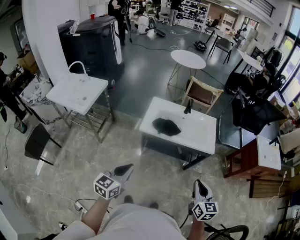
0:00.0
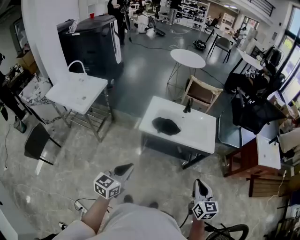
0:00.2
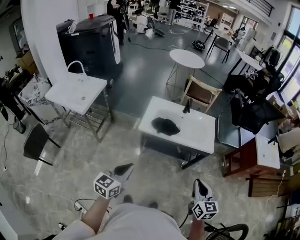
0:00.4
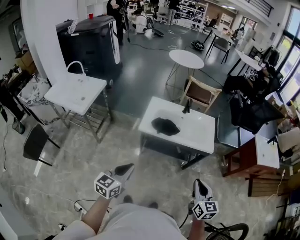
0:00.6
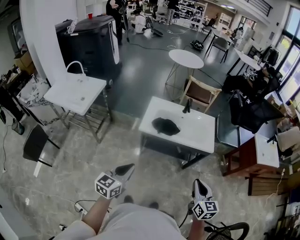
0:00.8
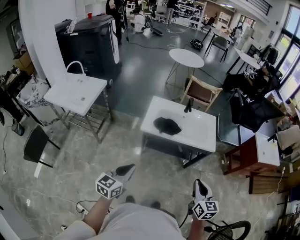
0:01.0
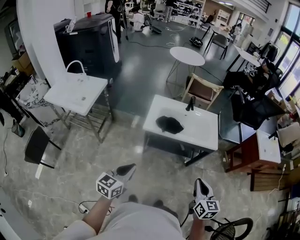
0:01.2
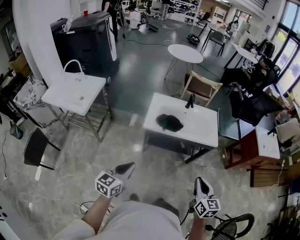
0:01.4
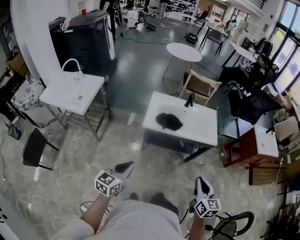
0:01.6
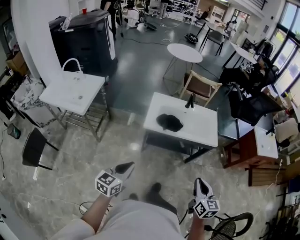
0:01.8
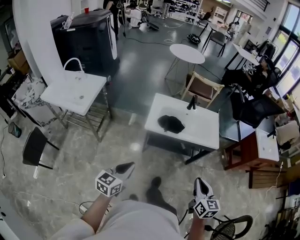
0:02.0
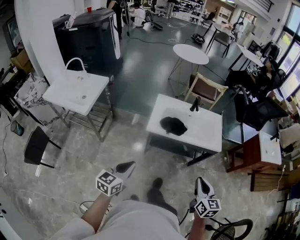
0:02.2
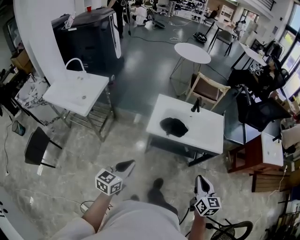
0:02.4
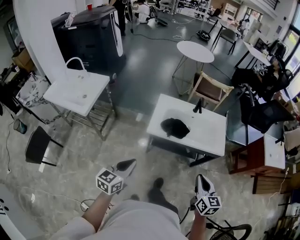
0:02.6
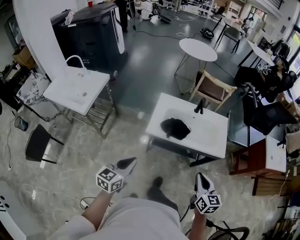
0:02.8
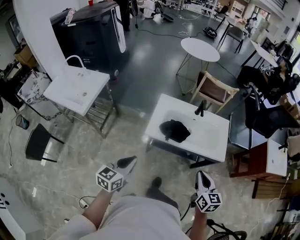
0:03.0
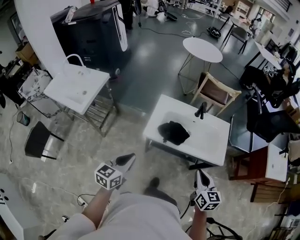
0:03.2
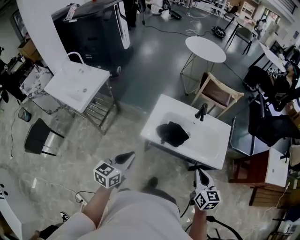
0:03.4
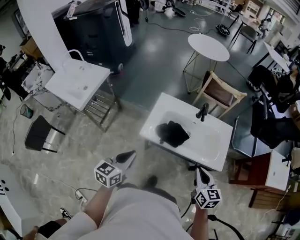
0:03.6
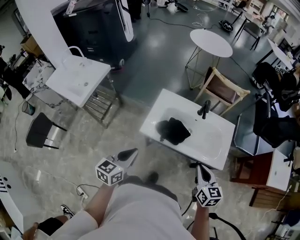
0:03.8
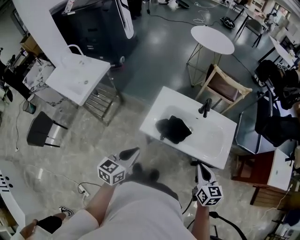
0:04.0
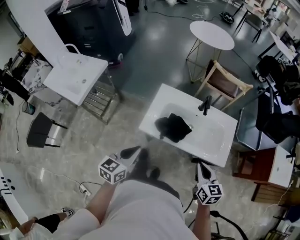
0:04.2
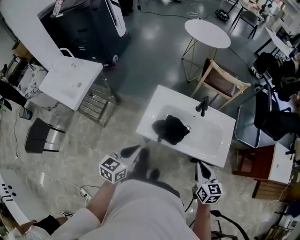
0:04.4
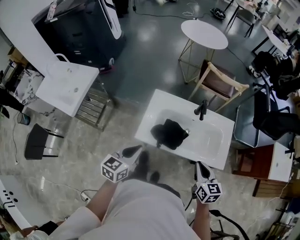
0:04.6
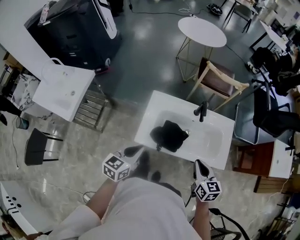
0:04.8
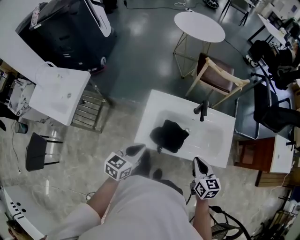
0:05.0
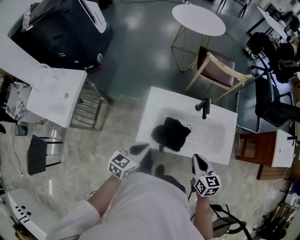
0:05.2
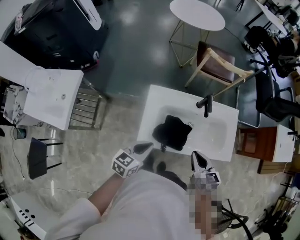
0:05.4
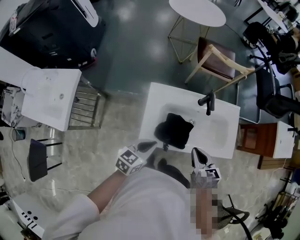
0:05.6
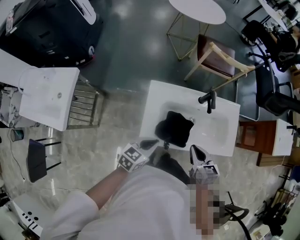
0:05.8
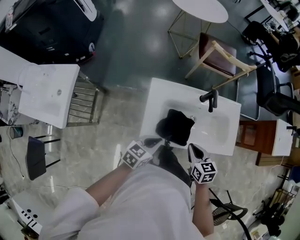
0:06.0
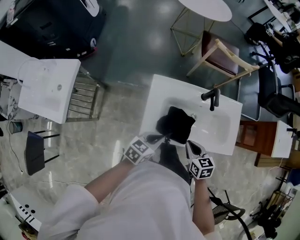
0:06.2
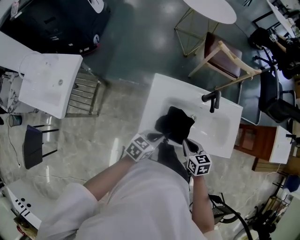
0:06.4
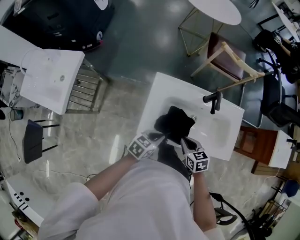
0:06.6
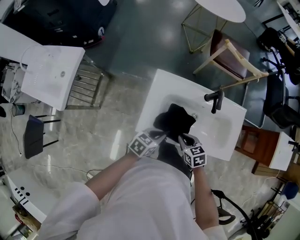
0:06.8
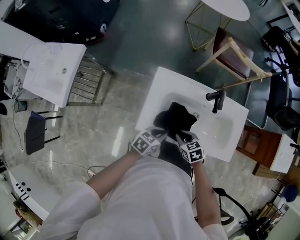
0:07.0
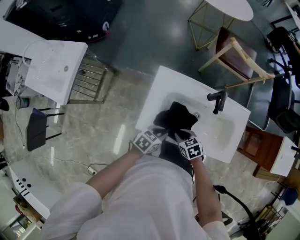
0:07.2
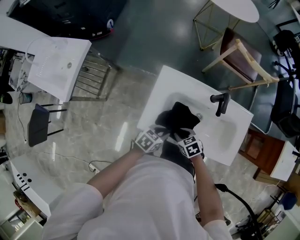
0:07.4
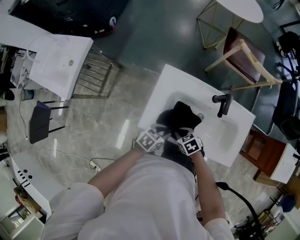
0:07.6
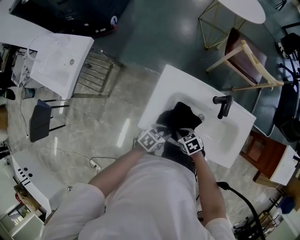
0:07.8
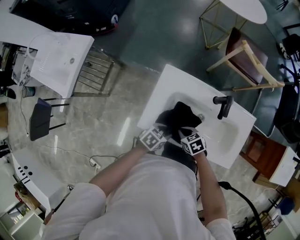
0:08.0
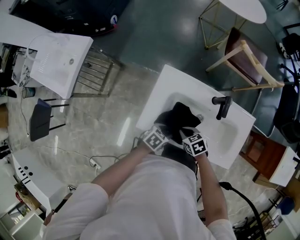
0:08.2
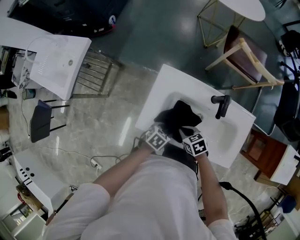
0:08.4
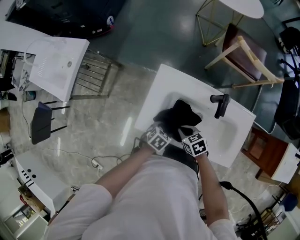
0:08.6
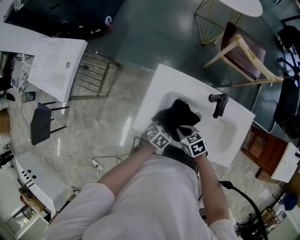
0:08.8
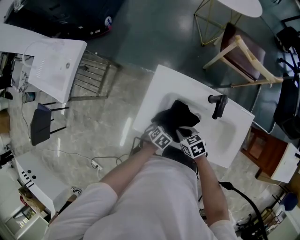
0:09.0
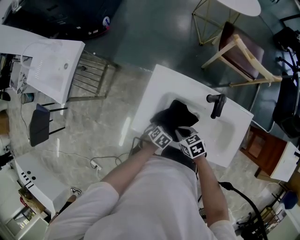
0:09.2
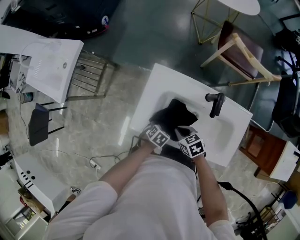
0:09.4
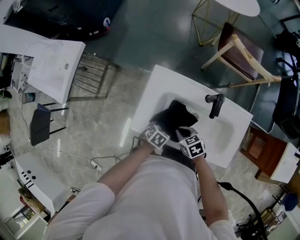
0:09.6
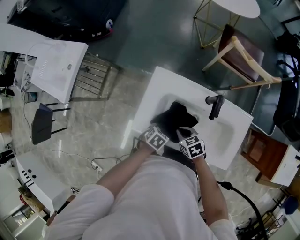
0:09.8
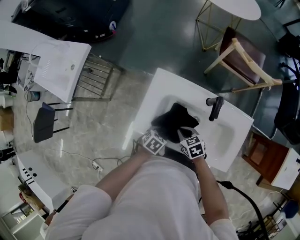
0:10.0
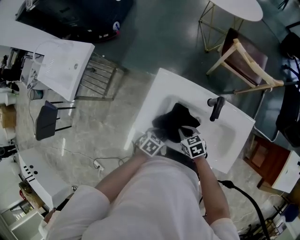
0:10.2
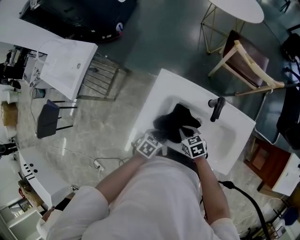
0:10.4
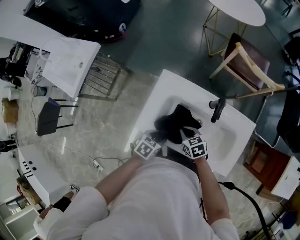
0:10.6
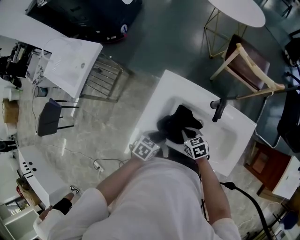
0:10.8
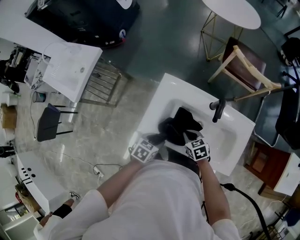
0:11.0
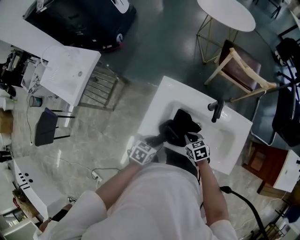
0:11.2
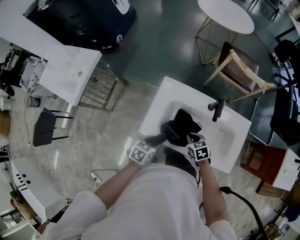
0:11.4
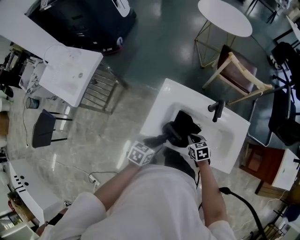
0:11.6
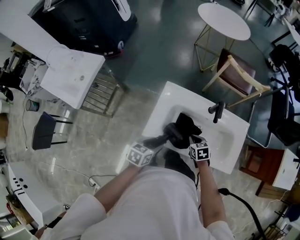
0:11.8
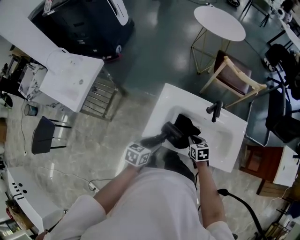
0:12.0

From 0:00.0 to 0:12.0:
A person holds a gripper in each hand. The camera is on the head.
From 0:00.0 to 0:01.6: Both grippers travel together to the left, about 10 cm.
From 0:01.6 to 0:03.0: Both grippers travel together forward, roughly 20 cm.
From 0:03.0 to 0:04.4: The left gripper heads forward and to the right, covering about 20 cm. The right gripper moves forward, some 15 cm.
From 0:04.4 to 0:06.0: The left gripper goes about 20 cm forward and downward, and rotates approximately 30 degrees; the right gripper heads to the left, forward and downward, covering approximately 20 cm.
From 0:06.0 to 0:07.6: The grippers both shift downward by about 15 cm. The right gripper rotates approximately 50 degrees. The left gripper opens up.
From 0:07.6 to 0:09.0: The left gripper travels downward by approximately 10 cm, swivels about 30 degrees, and opens up. Meanwhile the right gripper changes place by approximately 5 cm.
From 0:09.0 to 0:10.4: The left gripper is displaced upward by about 10 cm.
From 0:10.4 to 0:12.0: The left gripper travels upward and to the left by roughly 15 cm, and turns by roughly 20 degrees. Meanwhile the right gripper goes some 5 cm backward, and changes its angle by some 20 degrees.

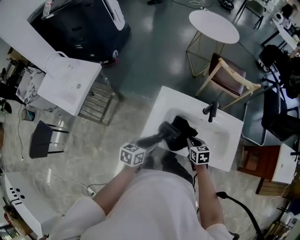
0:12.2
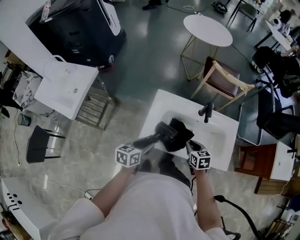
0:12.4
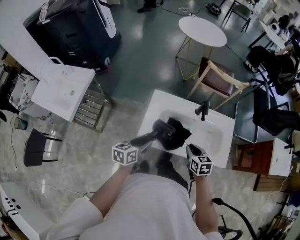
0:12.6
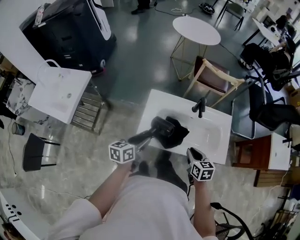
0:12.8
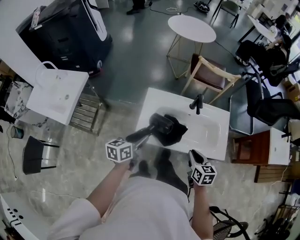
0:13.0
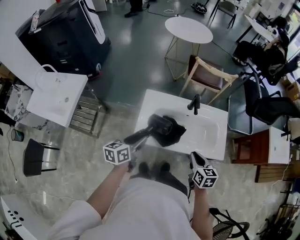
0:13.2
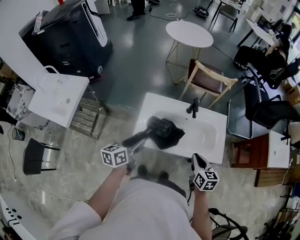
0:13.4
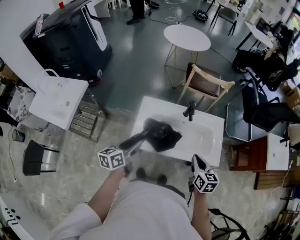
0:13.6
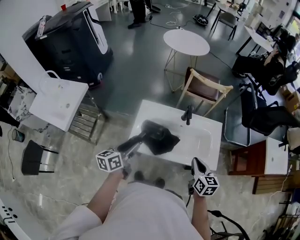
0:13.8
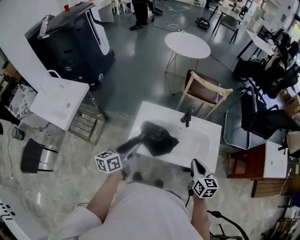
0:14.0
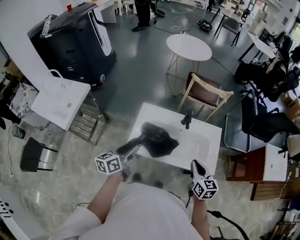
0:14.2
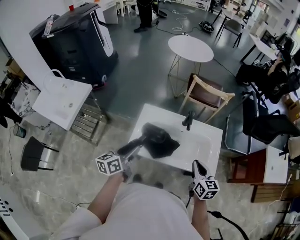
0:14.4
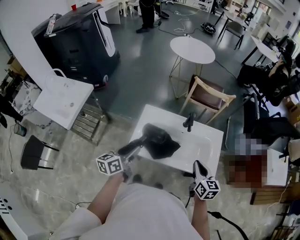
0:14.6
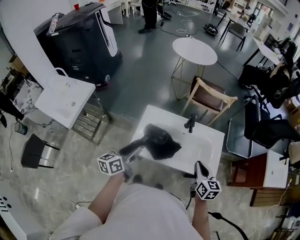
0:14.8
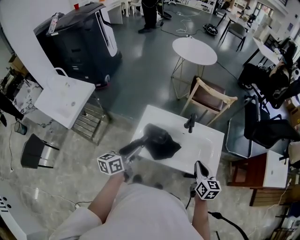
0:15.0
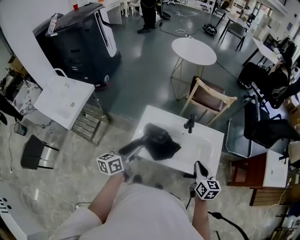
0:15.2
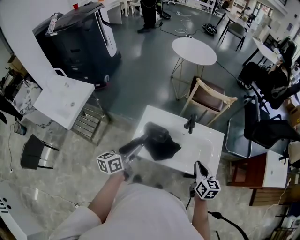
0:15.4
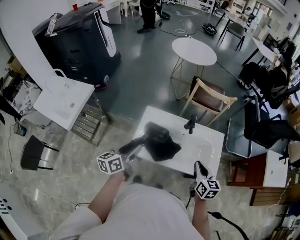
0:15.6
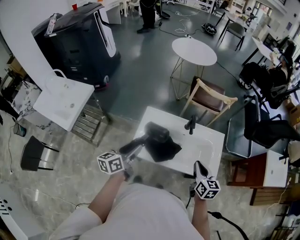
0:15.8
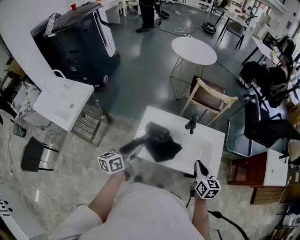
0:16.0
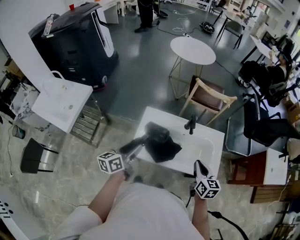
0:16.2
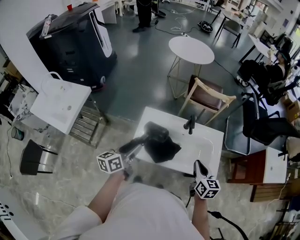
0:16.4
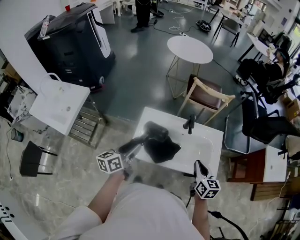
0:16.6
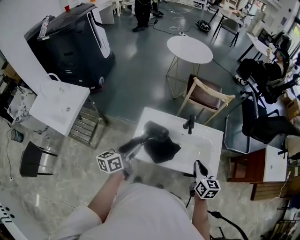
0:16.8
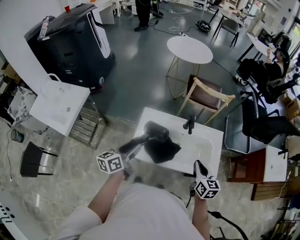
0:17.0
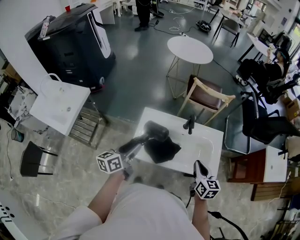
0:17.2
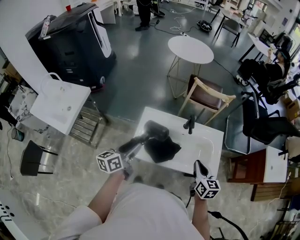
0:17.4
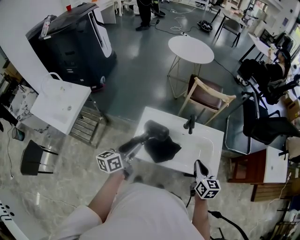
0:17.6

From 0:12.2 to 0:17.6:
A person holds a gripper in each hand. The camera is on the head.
From 0:12.2 to 0:13.6: The left gripper heads upward, covering some 10 cm, while the right gripper shifts roughly 25 cm upward, to the right and backward, and rotates approximately 30 degrees.
From 0:13.6 to 0:16.2: The grippers move only a little.
From 0:16.2 to 0:17.6: The two grippers keep their place.

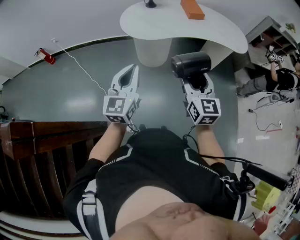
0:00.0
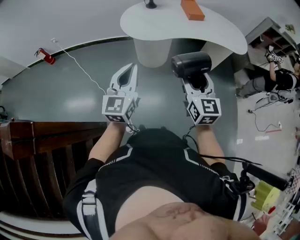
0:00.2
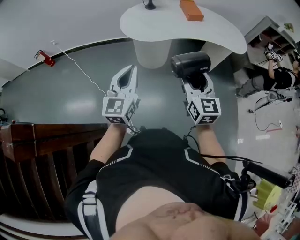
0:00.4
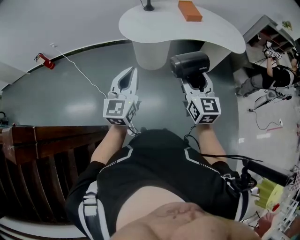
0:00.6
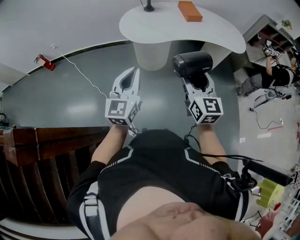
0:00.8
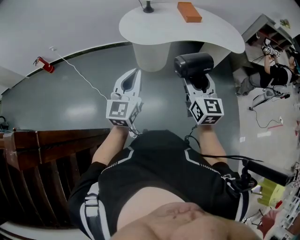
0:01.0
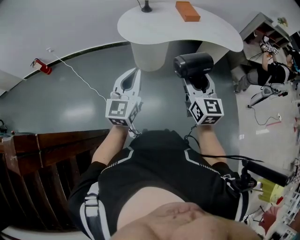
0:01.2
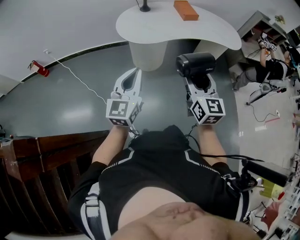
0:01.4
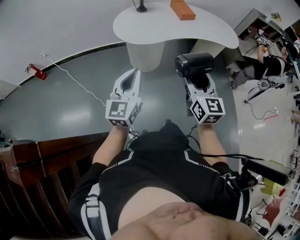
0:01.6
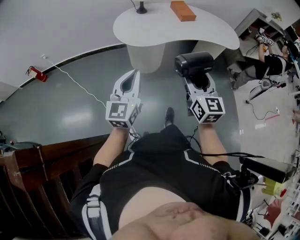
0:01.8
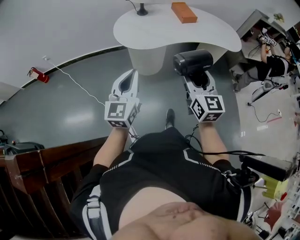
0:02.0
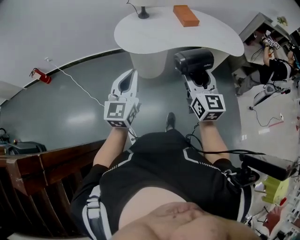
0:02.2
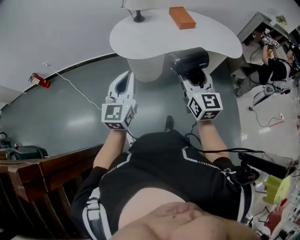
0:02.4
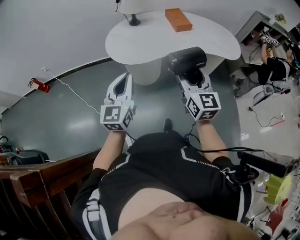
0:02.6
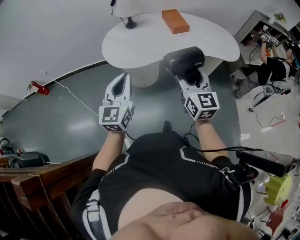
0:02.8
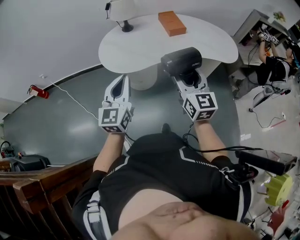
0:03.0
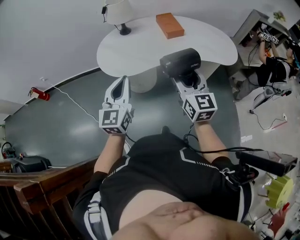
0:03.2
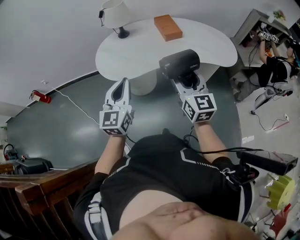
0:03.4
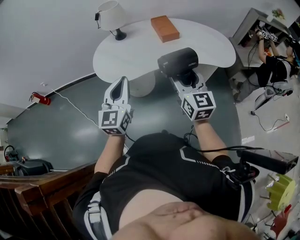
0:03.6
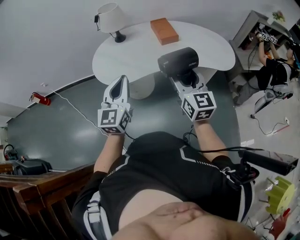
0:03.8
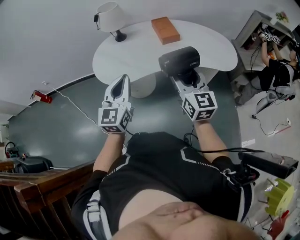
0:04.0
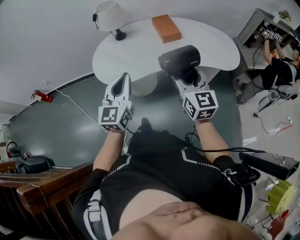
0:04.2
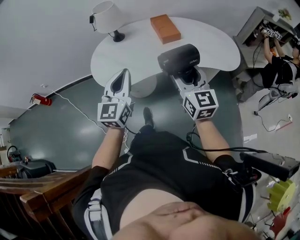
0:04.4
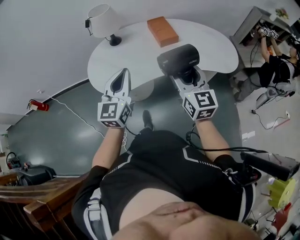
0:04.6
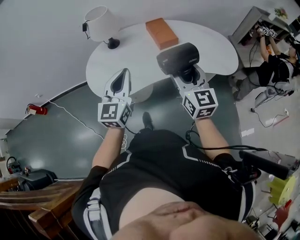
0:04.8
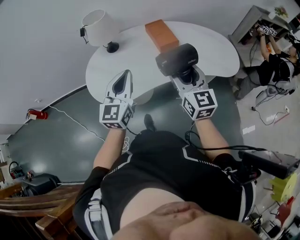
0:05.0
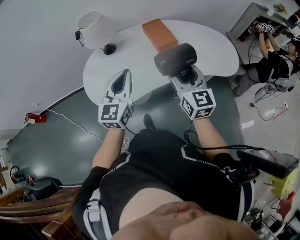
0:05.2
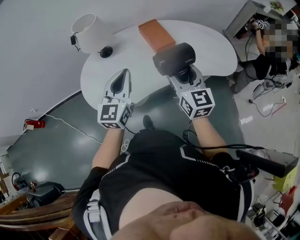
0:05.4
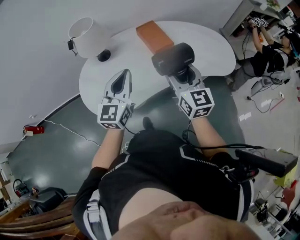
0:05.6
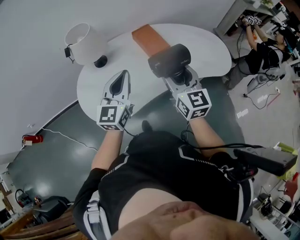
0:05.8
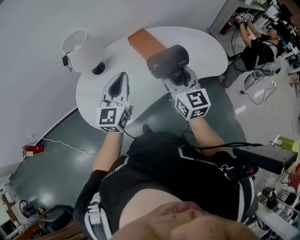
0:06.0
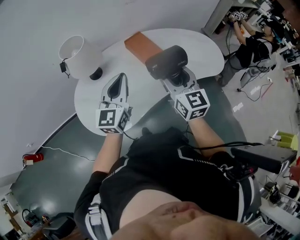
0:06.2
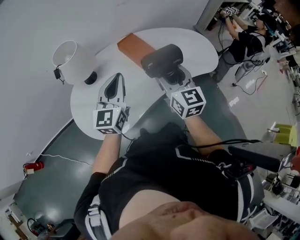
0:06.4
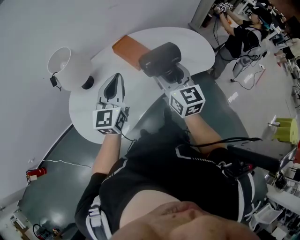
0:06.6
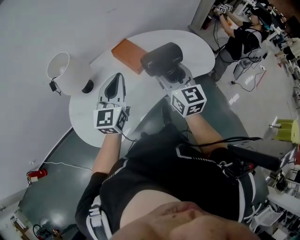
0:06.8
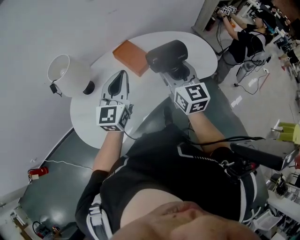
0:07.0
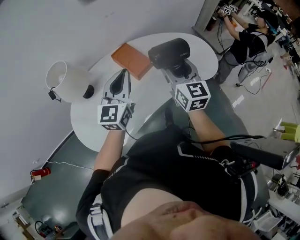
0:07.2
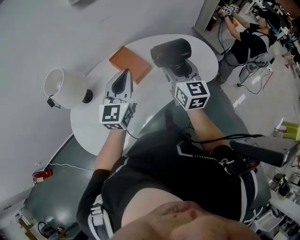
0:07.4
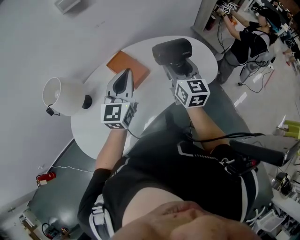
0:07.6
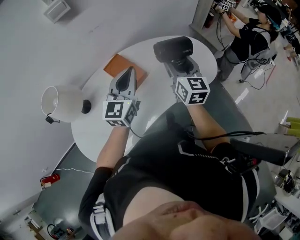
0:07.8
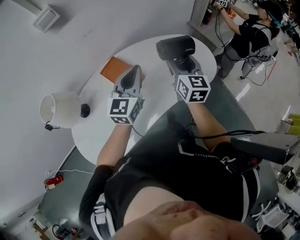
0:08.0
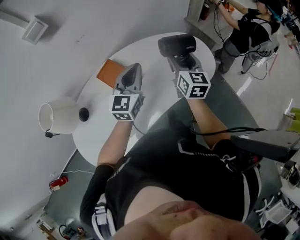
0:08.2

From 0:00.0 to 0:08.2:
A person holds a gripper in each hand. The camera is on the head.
From 0:00.0 to 0:01.6: There are only small adjustments of the grippers.
From 0:01.6 to 0:03.2: The two grippers go roughly 25 cm forward and to the right.
From 0:03.2 to 0:05.0: Both grippers move forward, approximately 20 cm.
From 0:05.0 to 0:06.6: The grippers both shift forward by about 15 cm.
From 0:06.6 to 0:08.2: The grippers both shift forward and to the right by approximately 35 cm. The right gripper turns by some 20 degrees.
